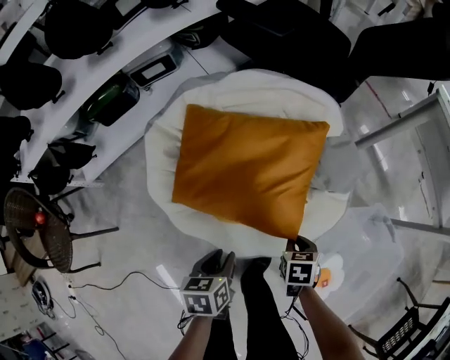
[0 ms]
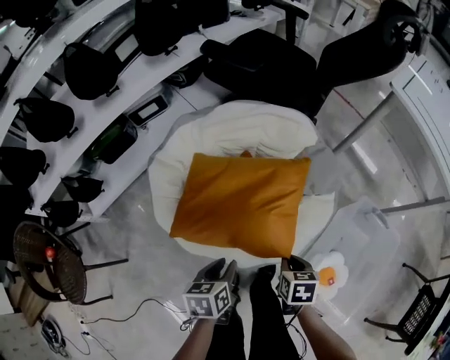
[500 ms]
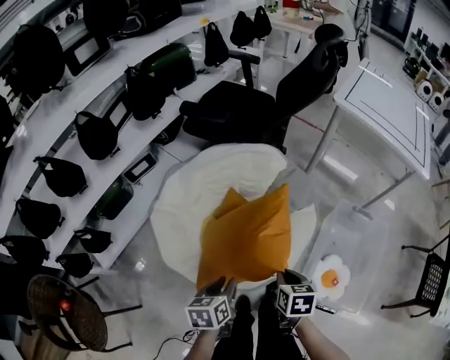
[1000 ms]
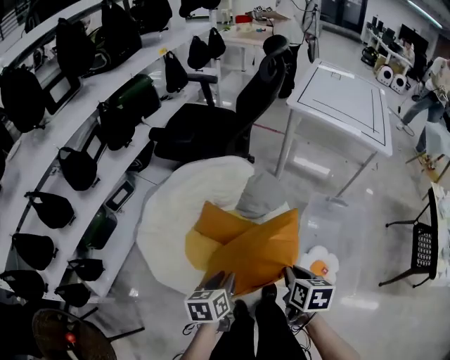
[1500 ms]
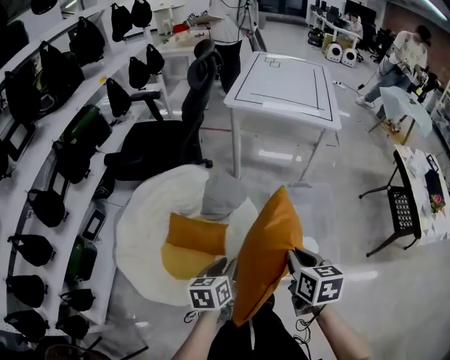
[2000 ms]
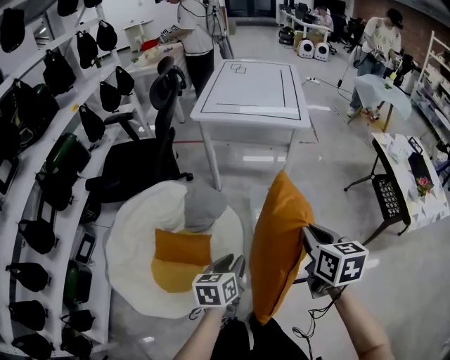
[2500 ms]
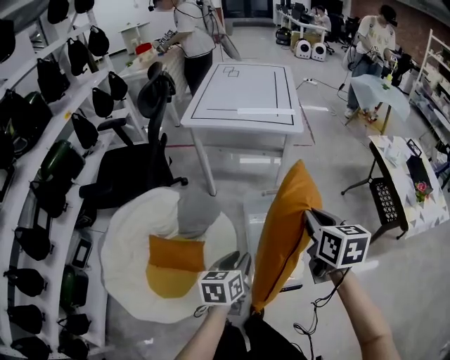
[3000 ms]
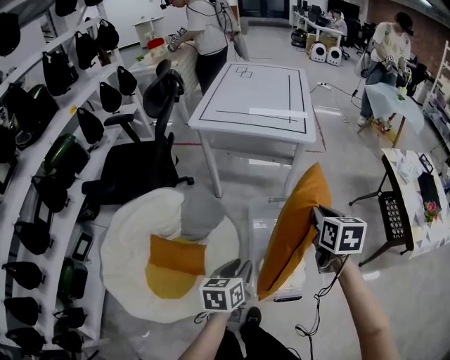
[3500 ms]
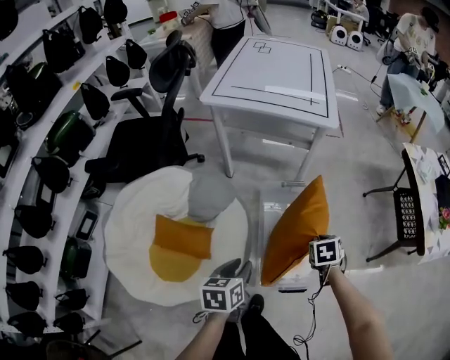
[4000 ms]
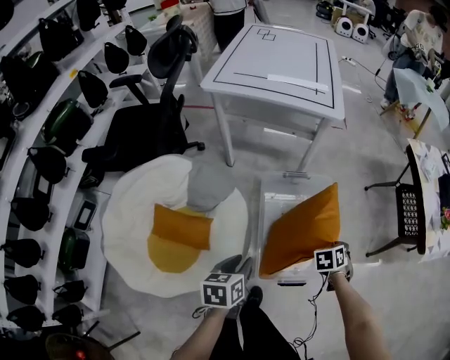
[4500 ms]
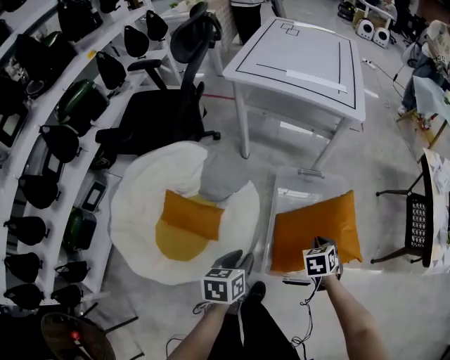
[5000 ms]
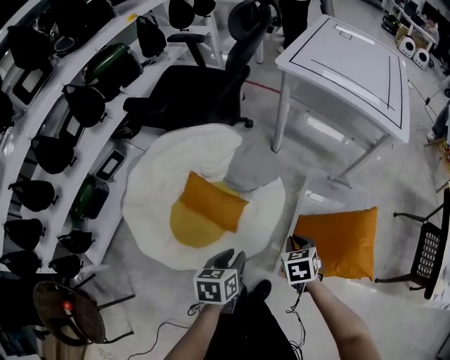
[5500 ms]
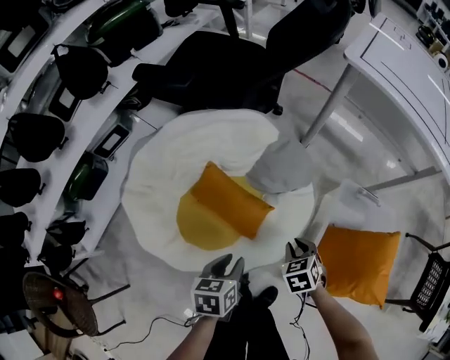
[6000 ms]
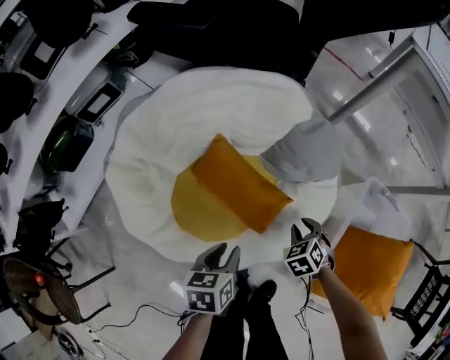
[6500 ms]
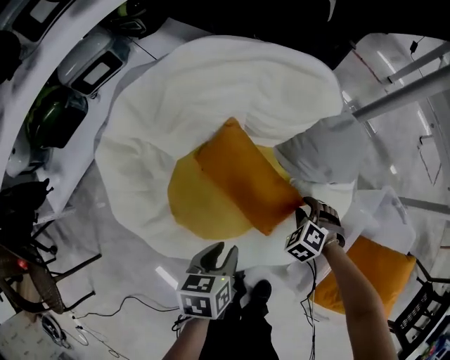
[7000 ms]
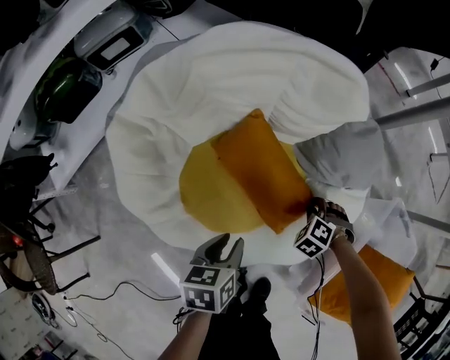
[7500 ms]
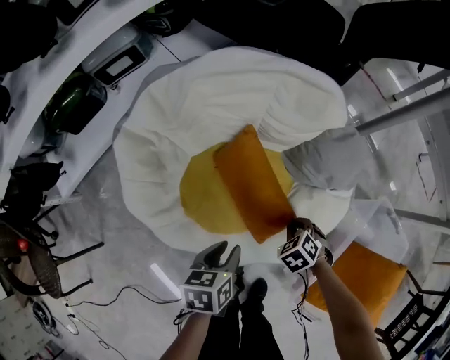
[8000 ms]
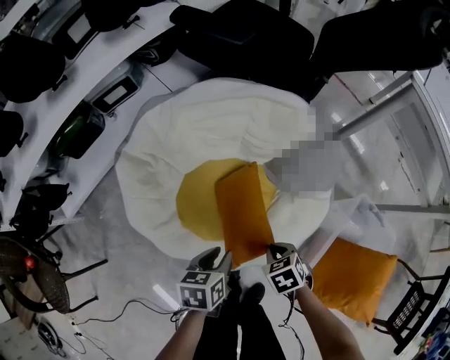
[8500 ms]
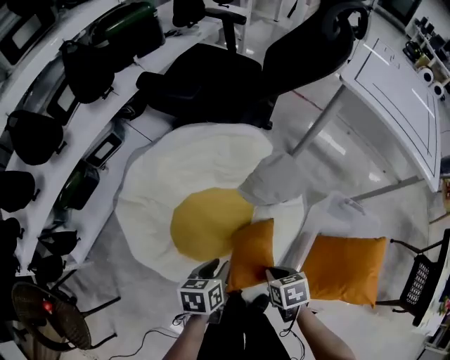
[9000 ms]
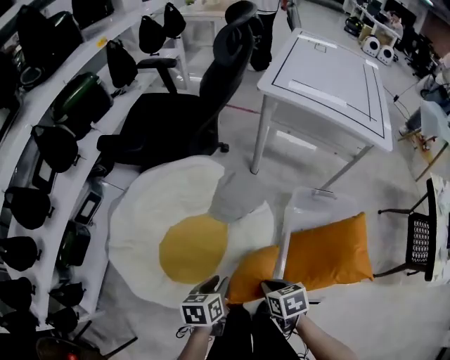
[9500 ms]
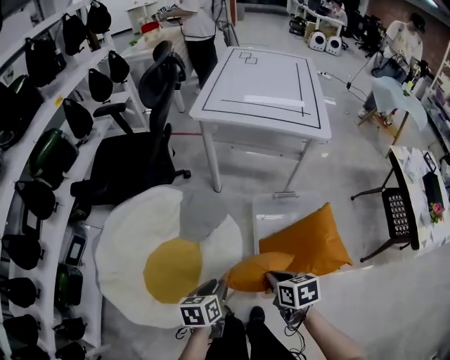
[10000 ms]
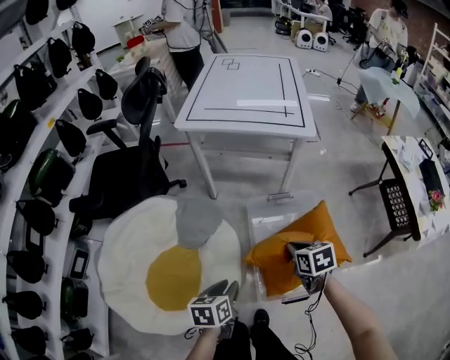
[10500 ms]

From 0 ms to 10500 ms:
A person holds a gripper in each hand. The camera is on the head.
From 0 ms to 2000 ms: The right gripper moves upward, some 40 cm, and angles its fingers upward, by some 30 degrees. The left gripper heads upward, covering approximately 25 cm, and turns by some 50 degrees.
From 2000 ms to 4000 ms: The right gripper is displaced to the right, downward and forward by about 35 cm, and turns by approximately 30 degrees. The left gripper heads to the right and forward, covering roughly 20 cm.
From 4000 ms to 6500 ms: The right gripper changes place by about 50 cm, twists roughly 60 degrees counterclockwise, seen from behind, and opens. Meanwhile the left gripper ends up about 40 cm from where it was, and turns by some 30 degrees.
From 6500 ms to 8500 ms: The left gripper goes downward and returns, roughly 10 cm each way, while the right gripper changes place by about 15 cm, and closes.
From 8500 ms to 10500 ms: The left gripper changes place by about 40 cm, and rotates approximately 40 degrees. The right gripper ends up about 50 cm from where it was, and rotates around the line of its fingers by roughly 50 degrees, clockwise from behind.

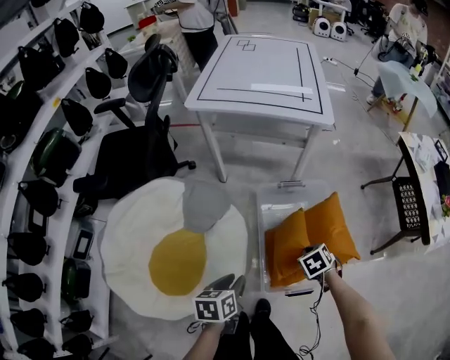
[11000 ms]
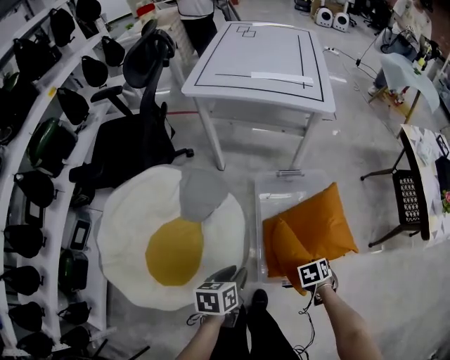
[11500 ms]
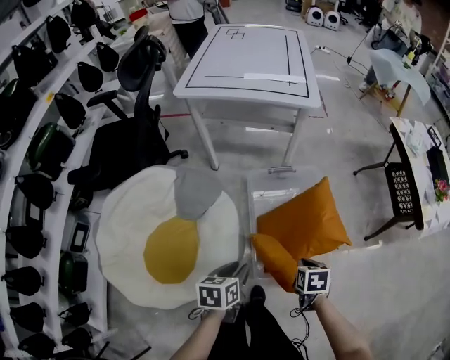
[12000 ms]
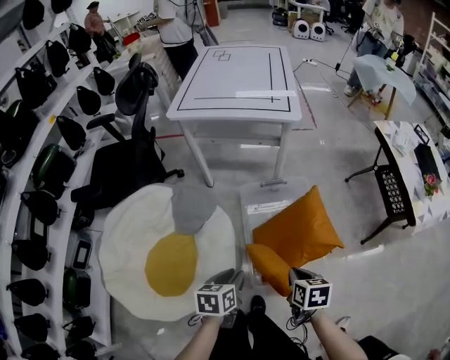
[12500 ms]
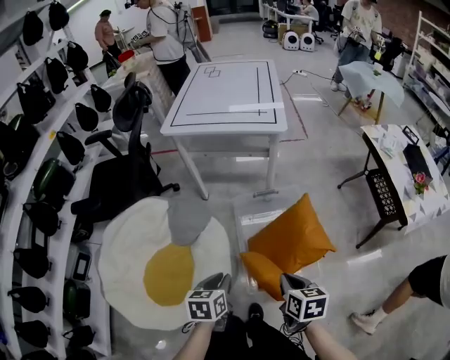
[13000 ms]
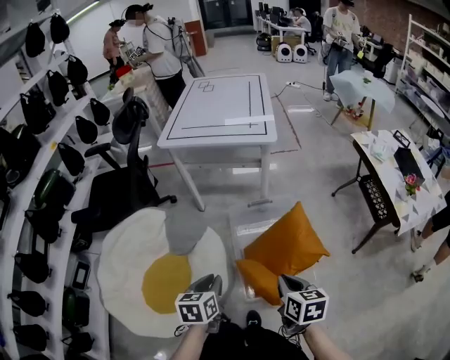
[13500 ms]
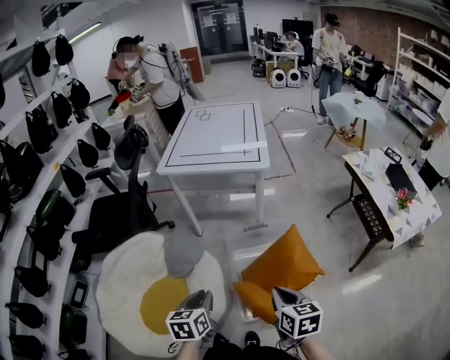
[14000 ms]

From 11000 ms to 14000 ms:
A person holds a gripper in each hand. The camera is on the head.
From 11000 ms to 12500 ms: The left gripper changes place by about 10 cm; the right gripper ends up roughly 15 cm from where it was, and swivels about 40 degrees.
From 12500 ms to 14000 ms: Both grippers move upward, some 10 cm. The right gripper changes its angle by some 20 degrees.

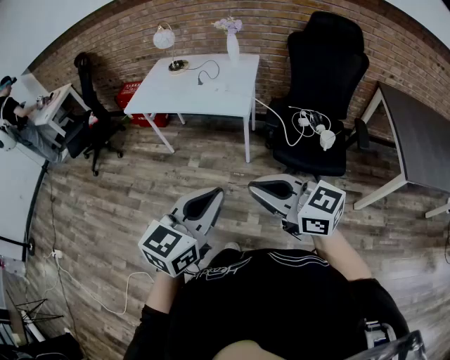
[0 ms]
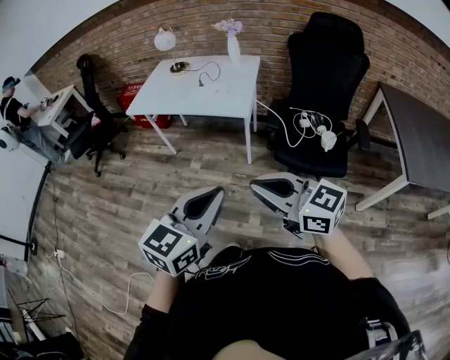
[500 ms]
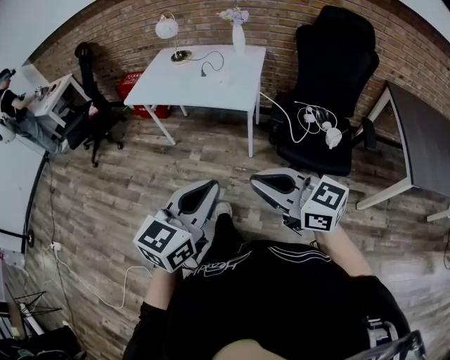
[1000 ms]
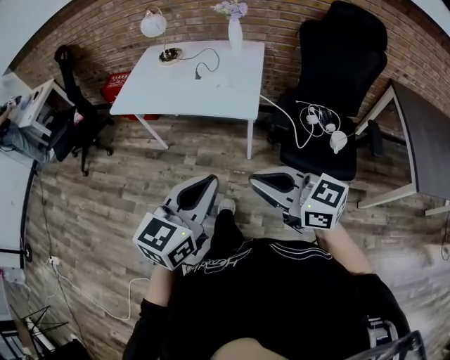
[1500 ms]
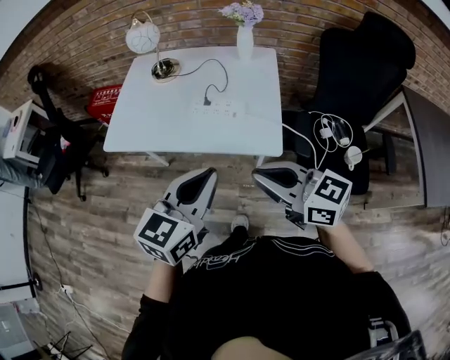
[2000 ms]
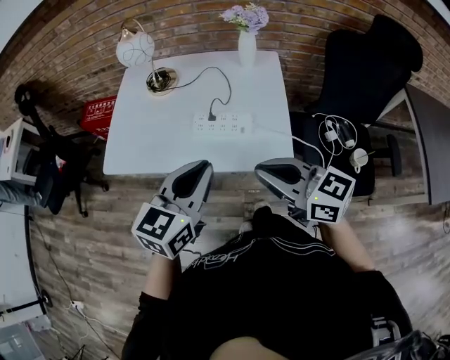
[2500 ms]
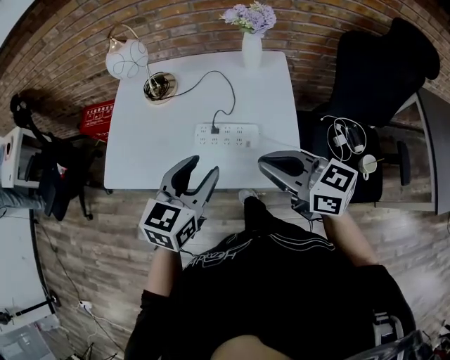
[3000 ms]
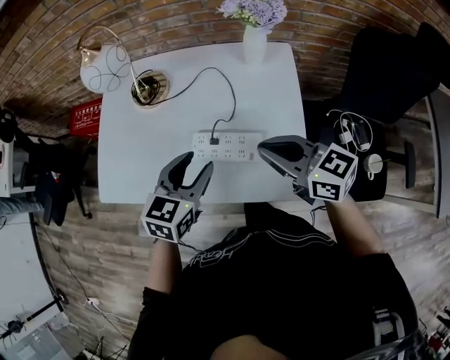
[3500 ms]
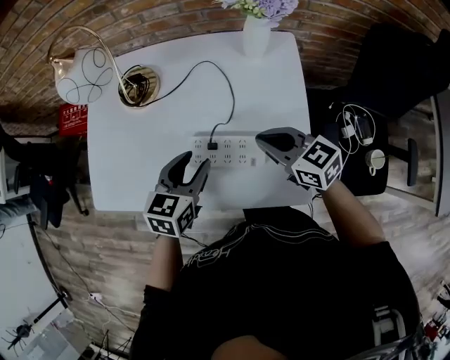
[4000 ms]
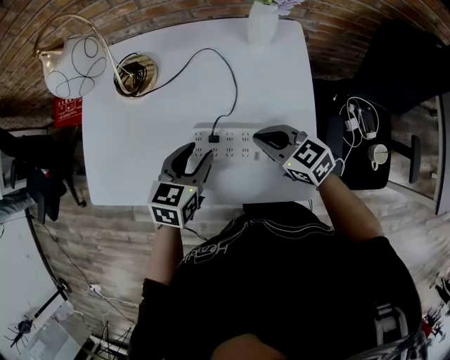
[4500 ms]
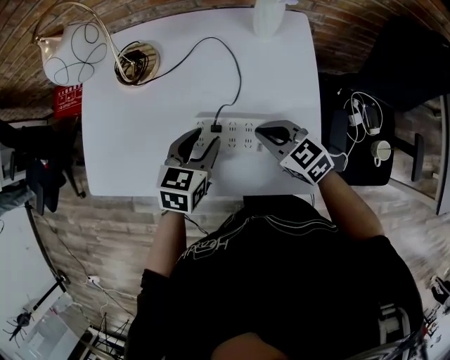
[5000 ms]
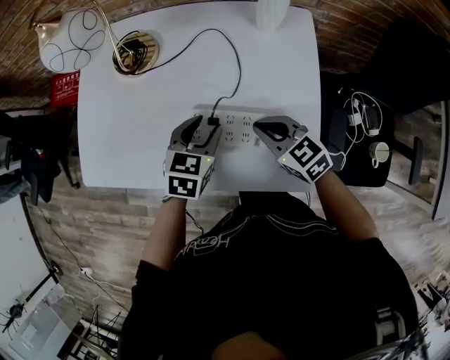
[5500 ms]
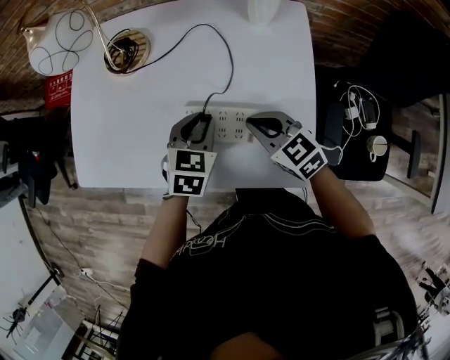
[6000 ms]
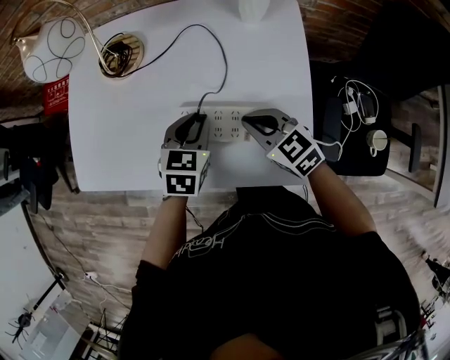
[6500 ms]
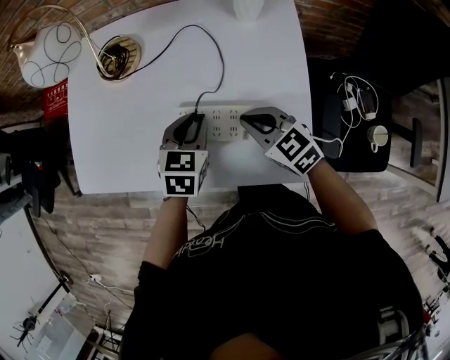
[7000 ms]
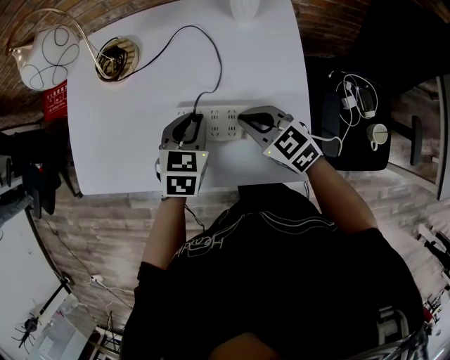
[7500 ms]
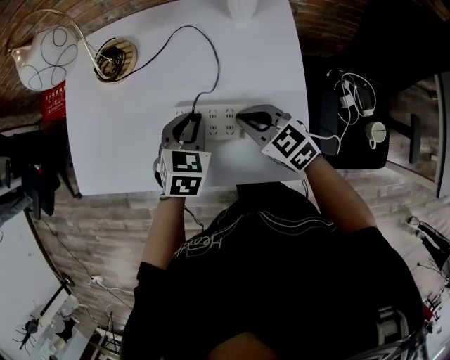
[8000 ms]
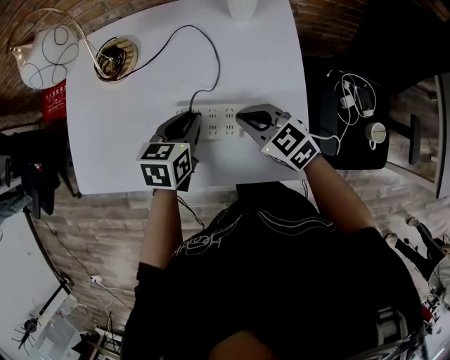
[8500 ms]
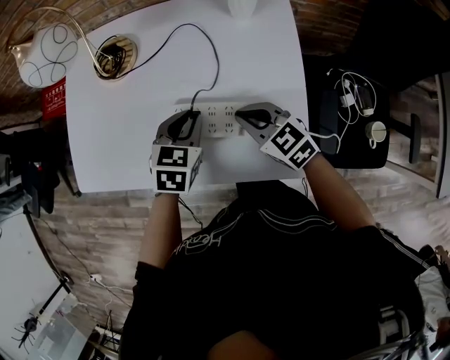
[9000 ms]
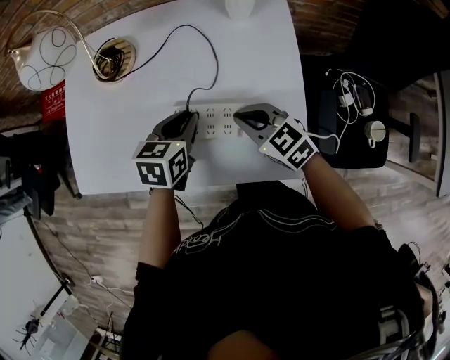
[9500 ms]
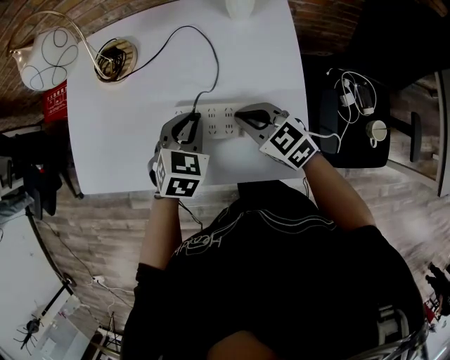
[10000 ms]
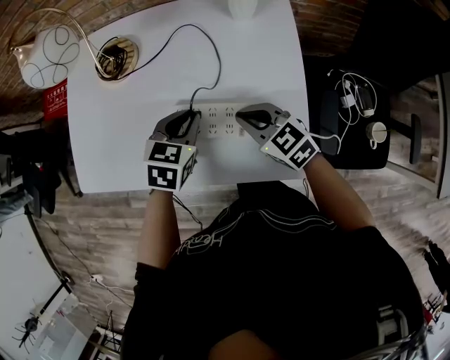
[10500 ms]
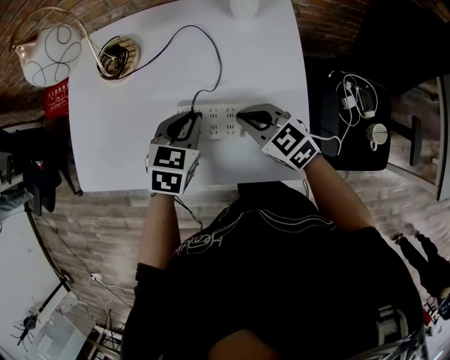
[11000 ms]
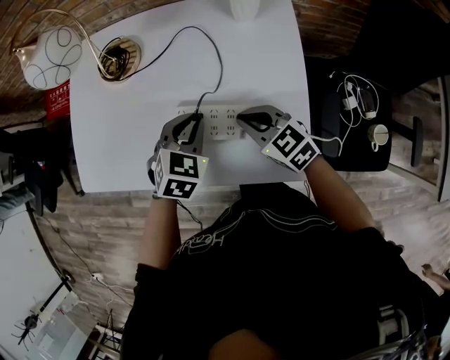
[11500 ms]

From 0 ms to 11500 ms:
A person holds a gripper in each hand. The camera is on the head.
From 0 ms to 2000 ms: Both grippers are carried forward, some 40 cm.
From 2000 ms to 4000 ms: The grippers both shift forward and downward by approximately 40 cm. The left gripper changes its angle by some 20 degrees, and opens.
From 4000 ms to 6000 ms: The grippers both shift downward by some 5 cm. The left gripper closes its fingers.
From 6000 ms to 9500 ms: There are only small adjustments of the grippers.
From 9500 ms to 11500 ms: The left gripper changes its angle by approximately 30 degrees.

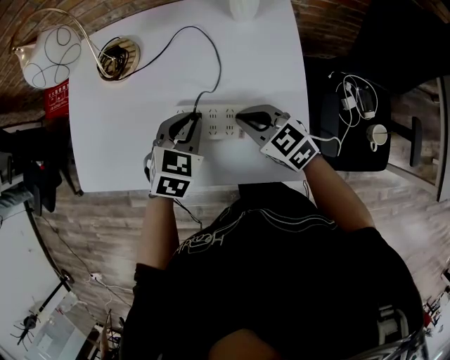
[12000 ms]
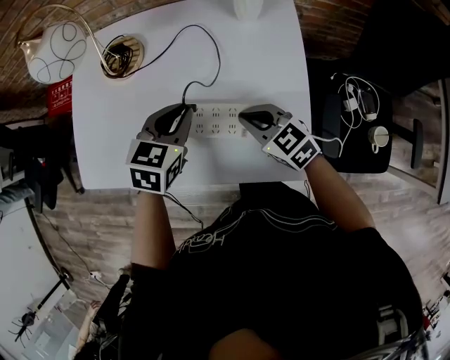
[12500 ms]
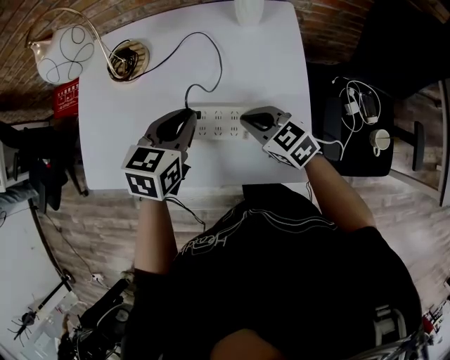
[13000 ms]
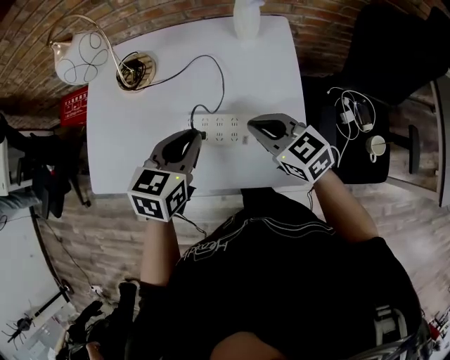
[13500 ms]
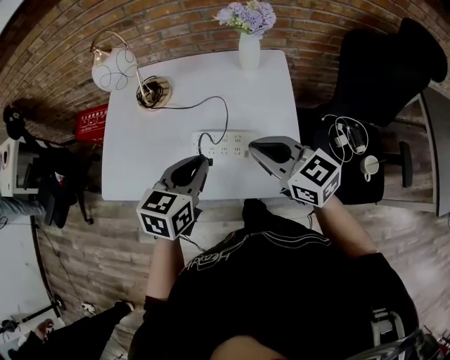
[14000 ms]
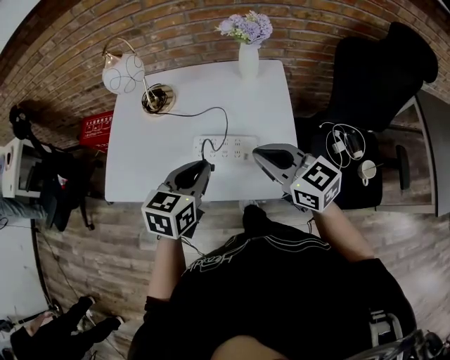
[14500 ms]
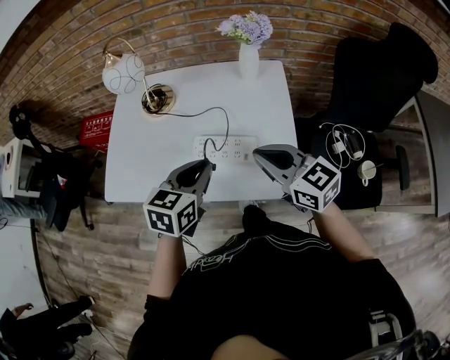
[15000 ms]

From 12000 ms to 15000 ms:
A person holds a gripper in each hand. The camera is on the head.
From 12000 ms to 13500 ms: Both grippers travel together upward, about 10 cm. The left gripper swivels roughly 20 degrees.
From 13500 ms to 15000 ms: The left gripper is displaced backward and upward by about 10 cm. Meanwhile the right gripper travels upward and backward by roughly 15 cm.
